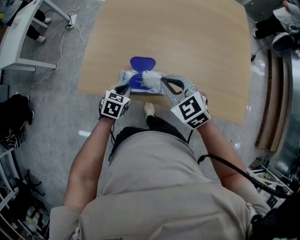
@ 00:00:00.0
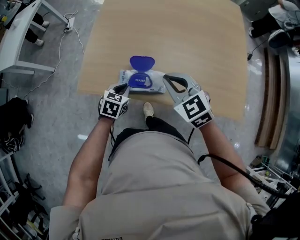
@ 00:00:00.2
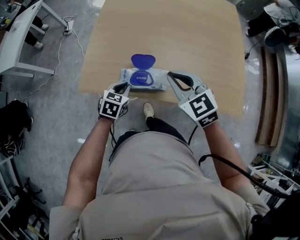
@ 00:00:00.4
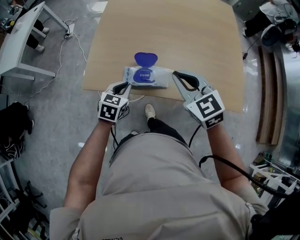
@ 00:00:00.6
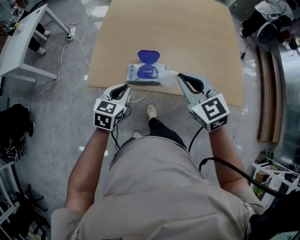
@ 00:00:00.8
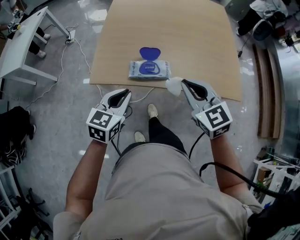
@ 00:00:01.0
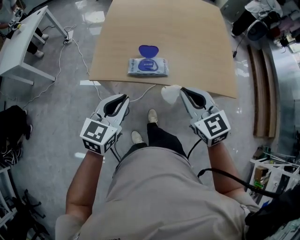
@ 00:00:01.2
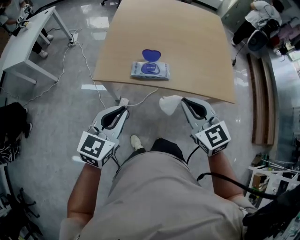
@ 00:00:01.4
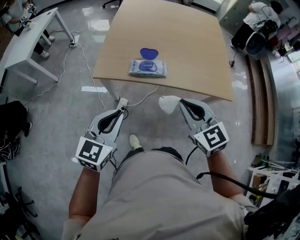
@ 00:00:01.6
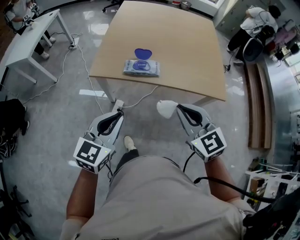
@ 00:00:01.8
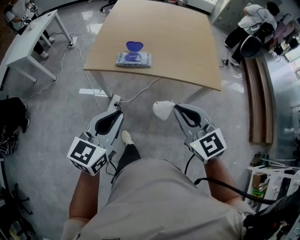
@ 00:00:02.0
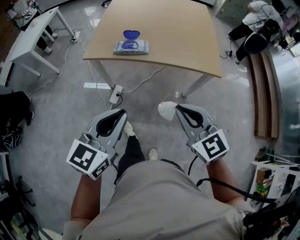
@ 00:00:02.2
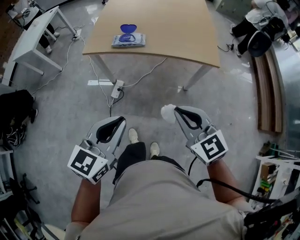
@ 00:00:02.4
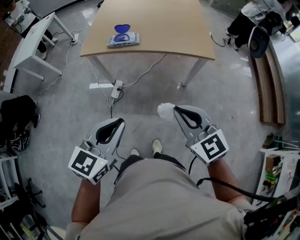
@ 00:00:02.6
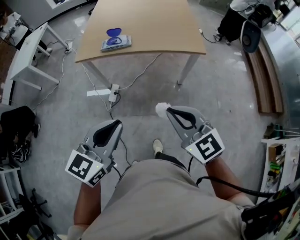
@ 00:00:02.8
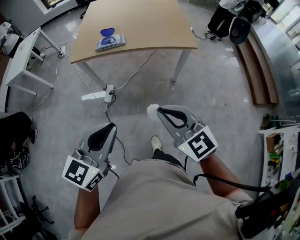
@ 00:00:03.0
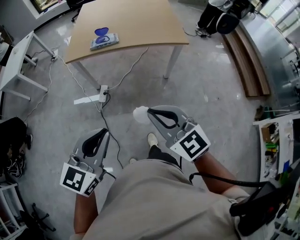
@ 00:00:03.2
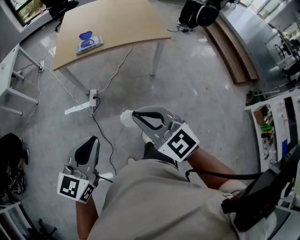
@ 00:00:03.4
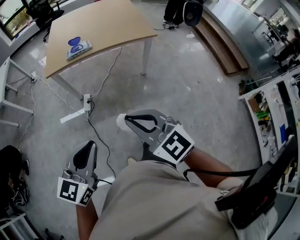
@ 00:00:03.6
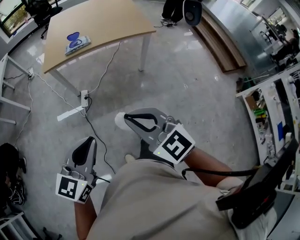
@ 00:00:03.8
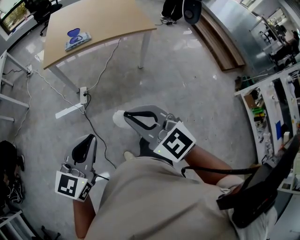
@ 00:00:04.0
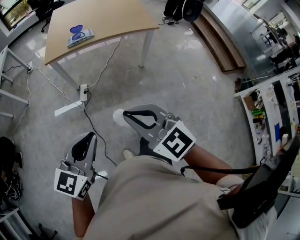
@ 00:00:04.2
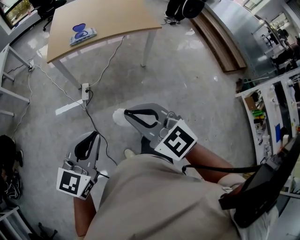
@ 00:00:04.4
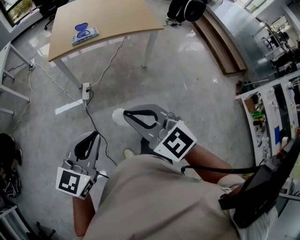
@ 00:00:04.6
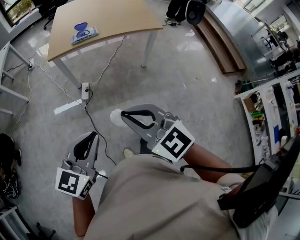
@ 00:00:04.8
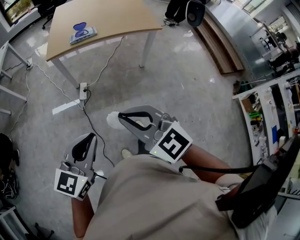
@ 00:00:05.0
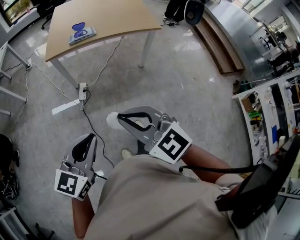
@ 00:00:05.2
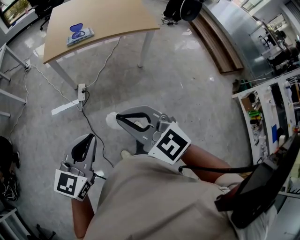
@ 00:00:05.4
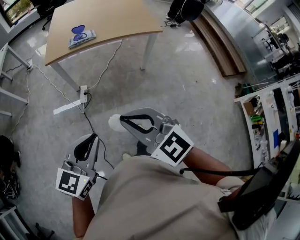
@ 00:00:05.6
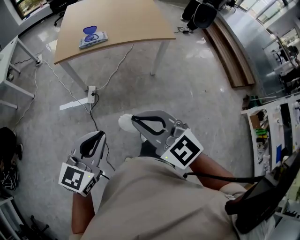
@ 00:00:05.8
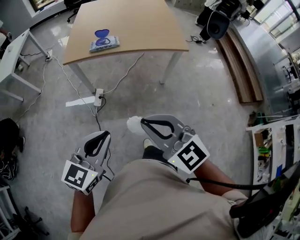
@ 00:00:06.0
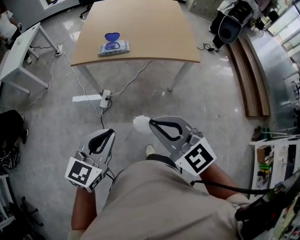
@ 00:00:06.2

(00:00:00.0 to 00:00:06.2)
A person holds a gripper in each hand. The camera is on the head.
00:00:00.0 - 00:00:01.6: The grippers both shift backward and upward by roughly 40 cm. The left gripper tilts its fingers about 40 degrees upward. The right gripper swivels some 20 degrees.
00:00:01.6 - 00:00:03.2: The pair of grippers is taken backward, about 50 cm.
00:00:03.2 - 00:00:04.6: The two grippers go approximately 15 cm backward and to the left.
00:00:04.6 - 00:00:06.2: The left gripper travels forward by roughly 20 cm. The right gripper moves forward and to the right, roughly 25 cm.

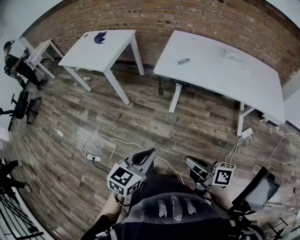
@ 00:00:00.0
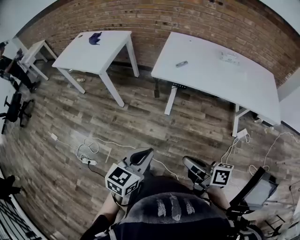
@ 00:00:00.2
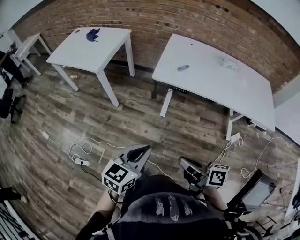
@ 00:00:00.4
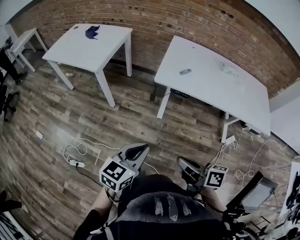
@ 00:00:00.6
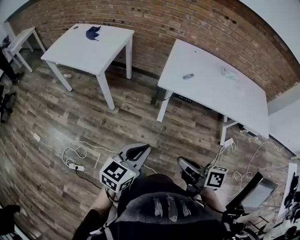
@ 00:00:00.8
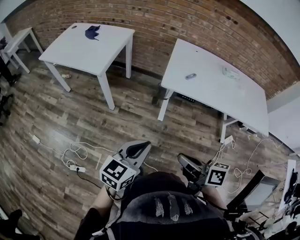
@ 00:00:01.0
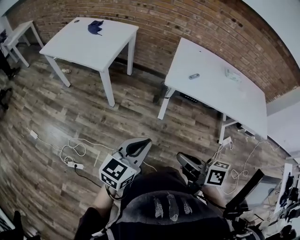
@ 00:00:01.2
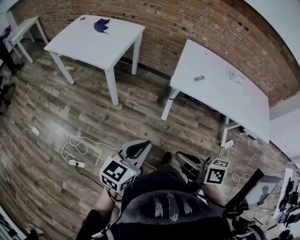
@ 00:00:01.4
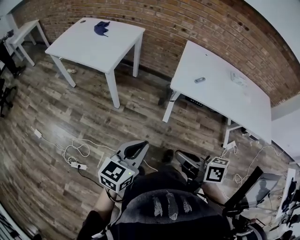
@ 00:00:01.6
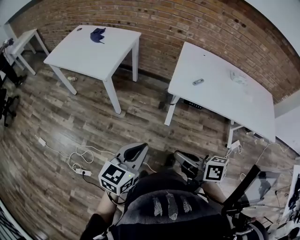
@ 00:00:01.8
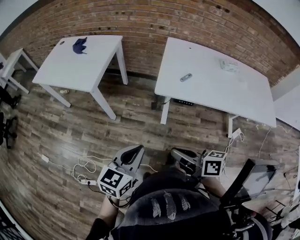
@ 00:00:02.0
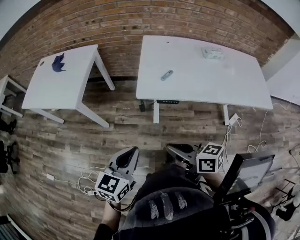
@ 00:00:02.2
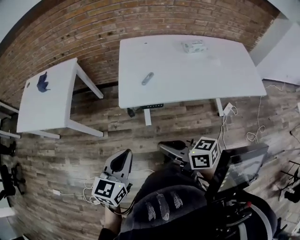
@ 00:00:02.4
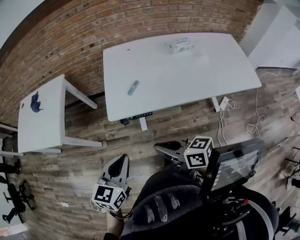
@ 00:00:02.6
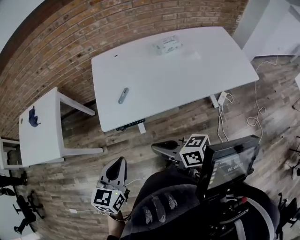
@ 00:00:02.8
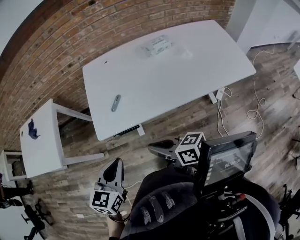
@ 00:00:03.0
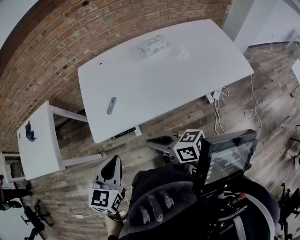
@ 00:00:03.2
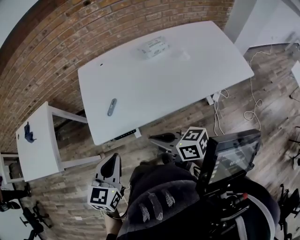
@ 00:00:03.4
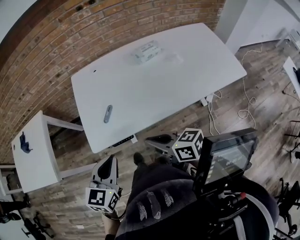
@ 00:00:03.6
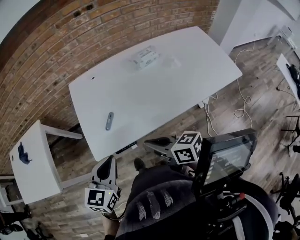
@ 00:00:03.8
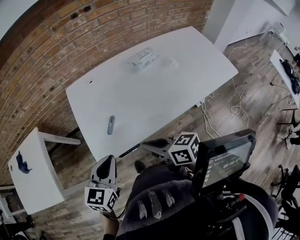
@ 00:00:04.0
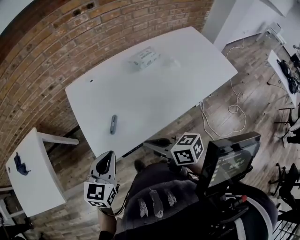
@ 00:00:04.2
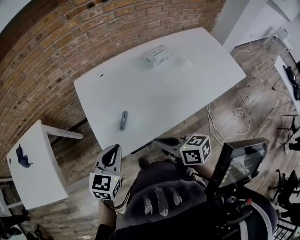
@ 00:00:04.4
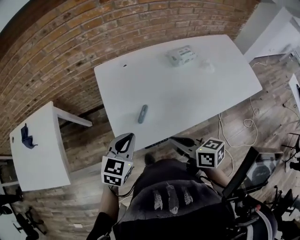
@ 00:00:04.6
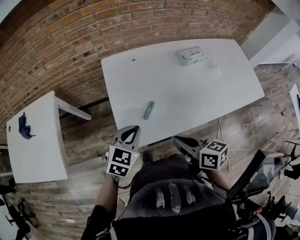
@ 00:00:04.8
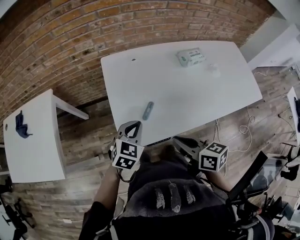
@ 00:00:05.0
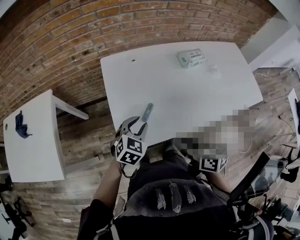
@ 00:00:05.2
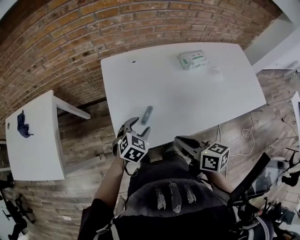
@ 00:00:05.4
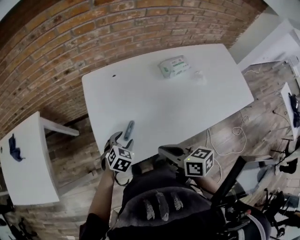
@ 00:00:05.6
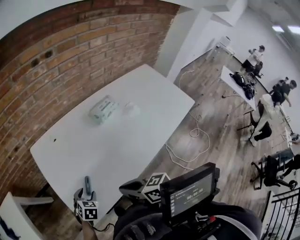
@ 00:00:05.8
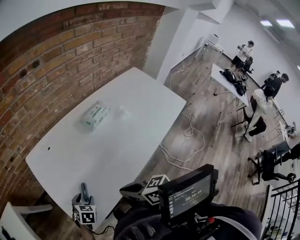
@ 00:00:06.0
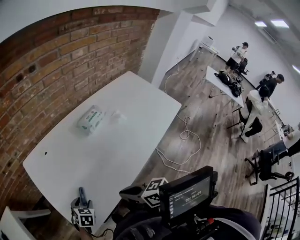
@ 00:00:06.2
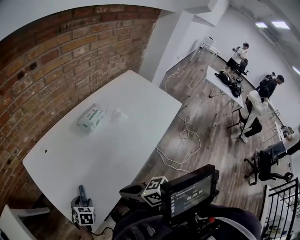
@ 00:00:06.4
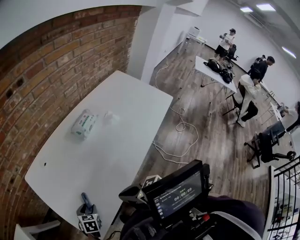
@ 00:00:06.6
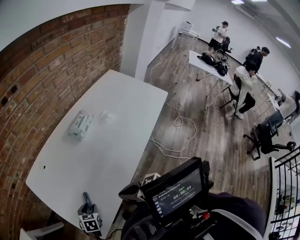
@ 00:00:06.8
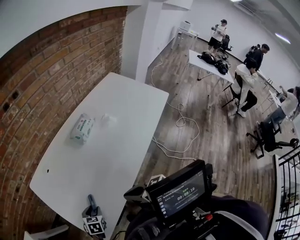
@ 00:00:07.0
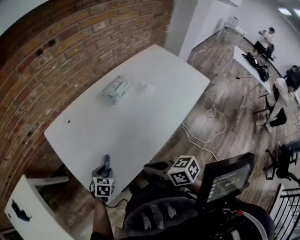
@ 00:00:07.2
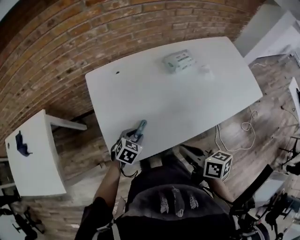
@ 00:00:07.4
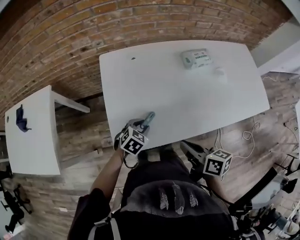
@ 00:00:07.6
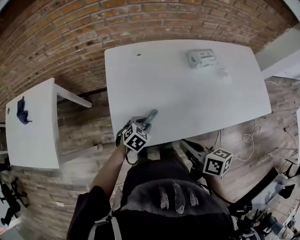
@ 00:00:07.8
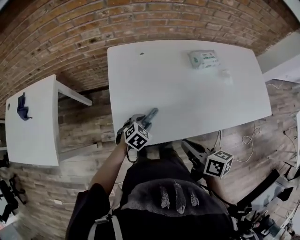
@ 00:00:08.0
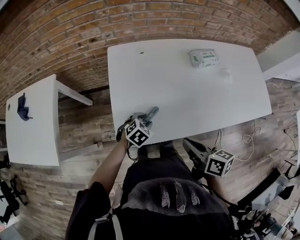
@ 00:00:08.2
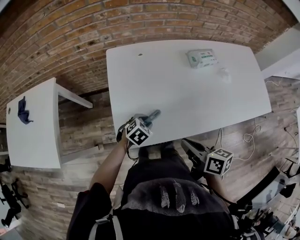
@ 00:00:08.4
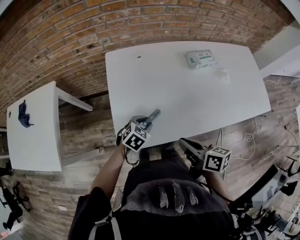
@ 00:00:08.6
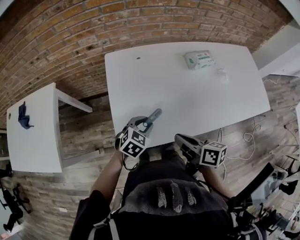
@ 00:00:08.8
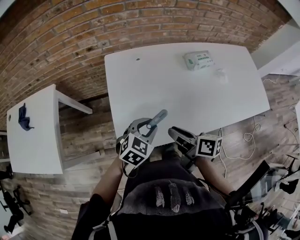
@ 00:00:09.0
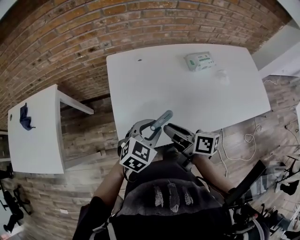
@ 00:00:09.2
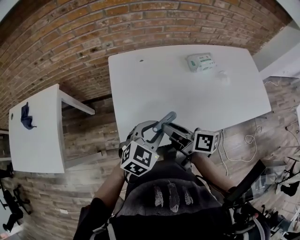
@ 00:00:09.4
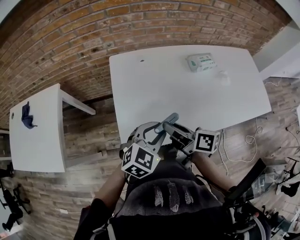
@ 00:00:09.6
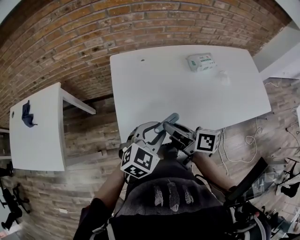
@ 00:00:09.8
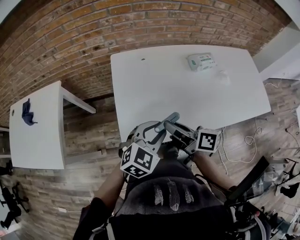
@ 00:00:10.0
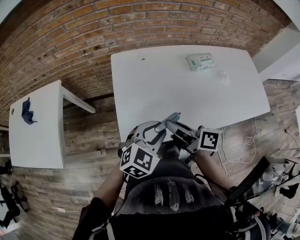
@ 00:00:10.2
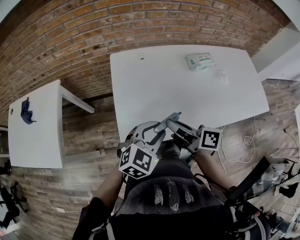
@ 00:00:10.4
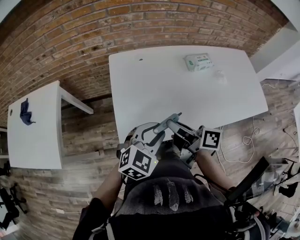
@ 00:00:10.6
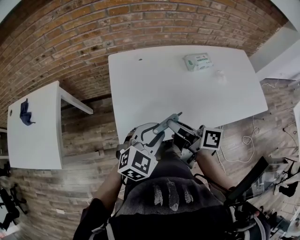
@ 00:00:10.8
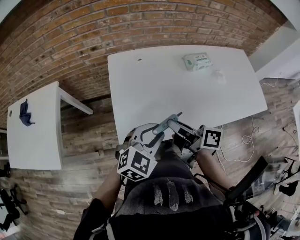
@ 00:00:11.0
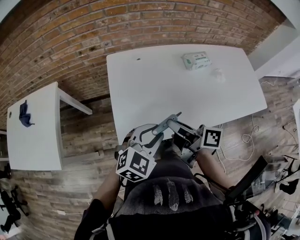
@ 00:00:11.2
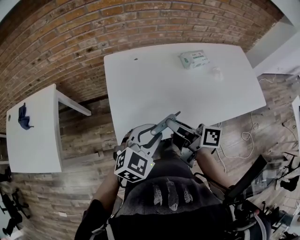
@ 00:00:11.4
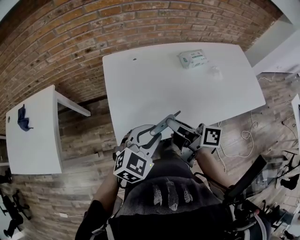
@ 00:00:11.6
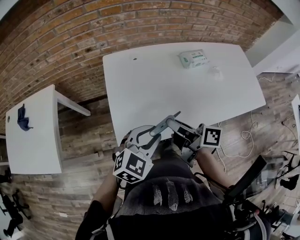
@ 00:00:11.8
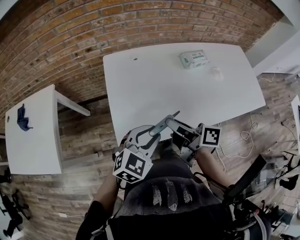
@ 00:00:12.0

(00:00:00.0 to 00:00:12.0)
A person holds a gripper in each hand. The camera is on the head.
00:00:00.0 - 00:00:01.6: The two grippers go some 25 cm to the left and forward.
00:00:01.6 - 00:00:03.0: The grippers both shift to the right and forward by about 30 cm. The left gripper rotates roughly 20 degrees.
00:00:03.0 - 00:00:04.4: Both grippers move forward, about 15 cm. The right gripper rotates approximately 20 degrees.
00:00:04.4 - 00:00:06.0: The left gripper goes roughly 25 cm downward and forward, angles its fingers downward, by roughly 30 degrees, and opens its fingers. The right gripper travels forward by about 5 cm.
00:00:06.0 - 00:00:07.6: The left gripper closes up.
00:00:07.6 - 00:00:09.0: The right gripper shifts some 5 cm to the left, and opens. The left gripper shifts approximately 10 cm upward.
00:00:09.0 - 00:00:10.4: The two grippers go about 5 cm upward.
00:00:10.4 - 00:00:12.0: There are only small adjustments of the grippers.

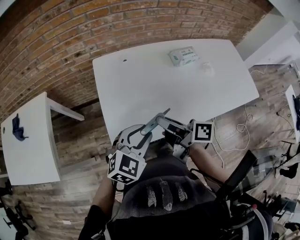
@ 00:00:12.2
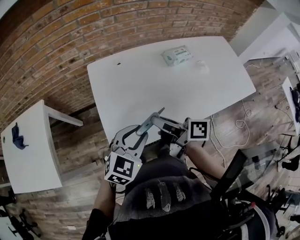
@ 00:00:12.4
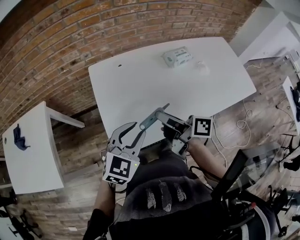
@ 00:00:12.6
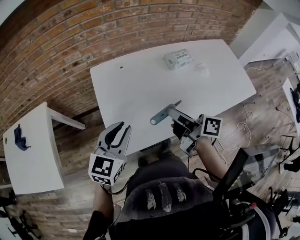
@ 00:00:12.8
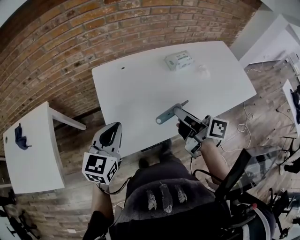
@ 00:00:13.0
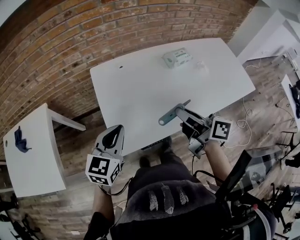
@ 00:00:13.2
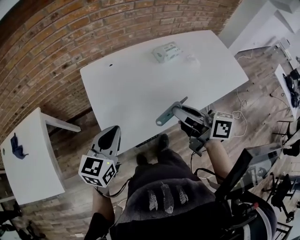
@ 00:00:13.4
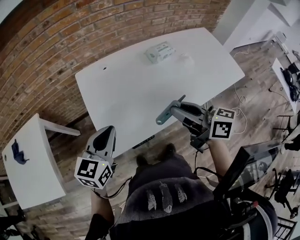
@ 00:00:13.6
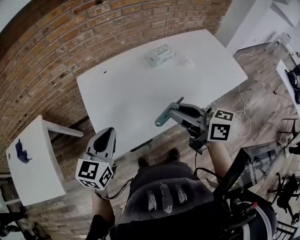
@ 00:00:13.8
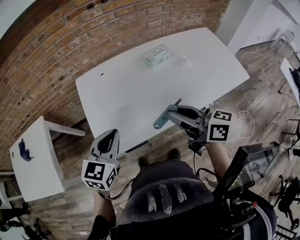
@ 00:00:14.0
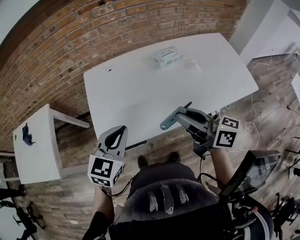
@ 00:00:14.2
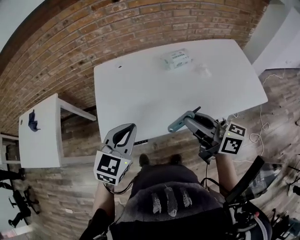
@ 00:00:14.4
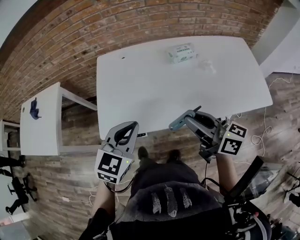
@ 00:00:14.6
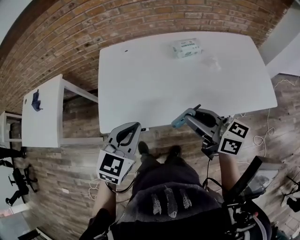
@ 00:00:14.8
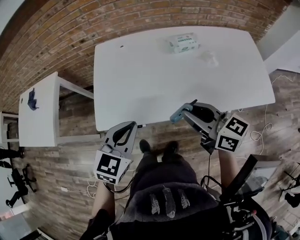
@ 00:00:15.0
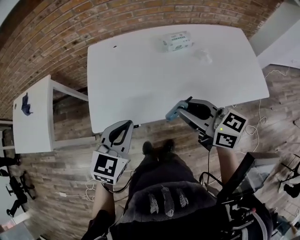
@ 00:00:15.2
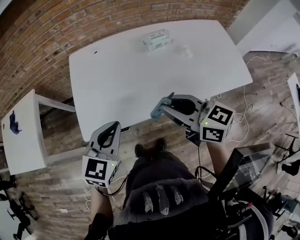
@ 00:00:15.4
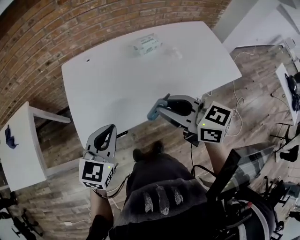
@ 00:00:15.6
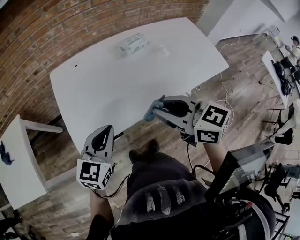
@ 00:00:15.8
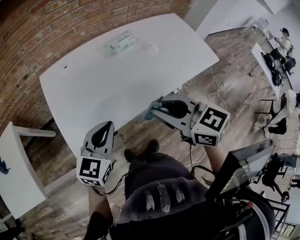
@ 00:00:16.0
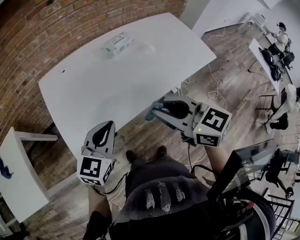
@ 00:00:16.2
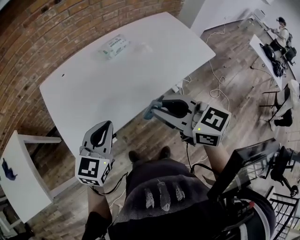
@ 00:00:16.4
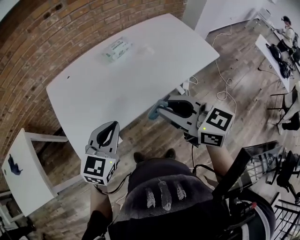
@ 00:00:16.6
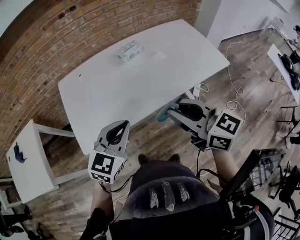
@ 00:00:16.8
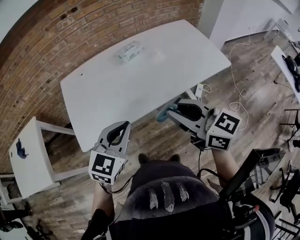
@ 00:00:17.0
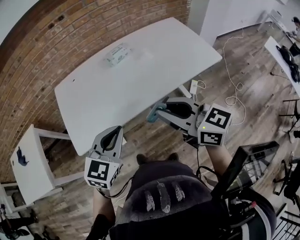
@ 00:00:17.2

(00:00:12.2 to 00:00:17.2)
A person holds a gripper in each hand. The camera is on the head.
00:00:12.2 - 00:00:13.8: The right gripper shifts about 15 cm to the right and upward, and turns by some 30 degrees; the left gripper travels upward by about 5 cm, turns by roughly 20 degrees, and closes its fingers.
00:00:13.8 - 00:00:15.6: The left gripper moves to the right and backward, roughly 10 cm. Meanwhile the right gripper travels to the right by some 5 cm, and rotates roughly 20 degrees.
00:00:15.6 - 00:00:17.2: The two grippers go approximately 15 cm to the right and backward.
